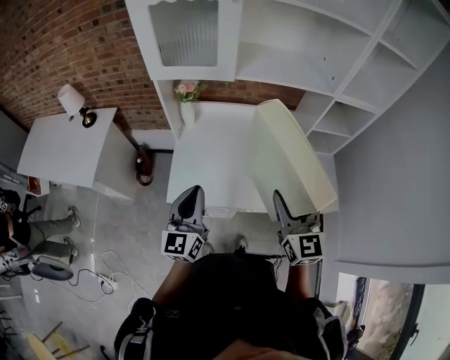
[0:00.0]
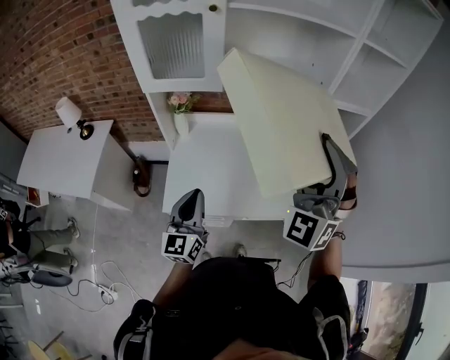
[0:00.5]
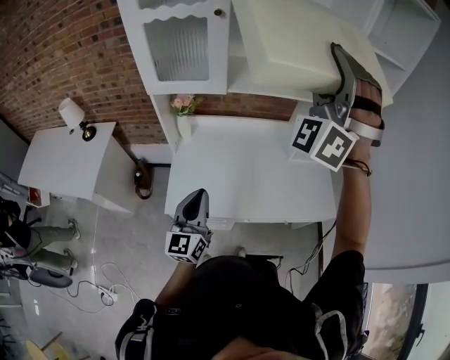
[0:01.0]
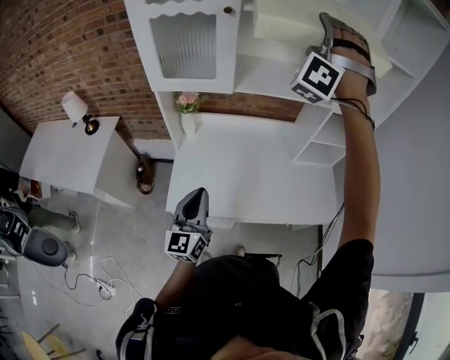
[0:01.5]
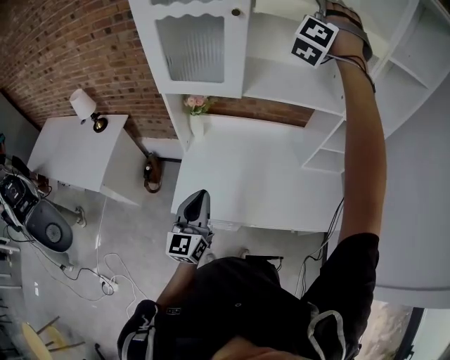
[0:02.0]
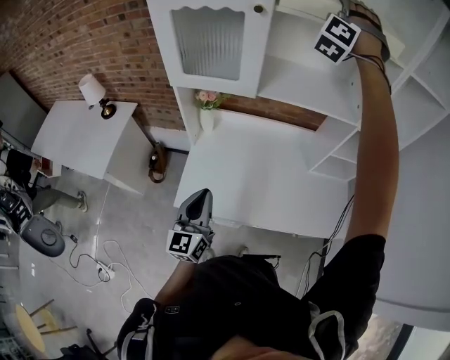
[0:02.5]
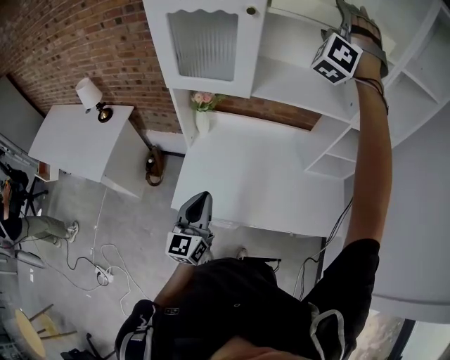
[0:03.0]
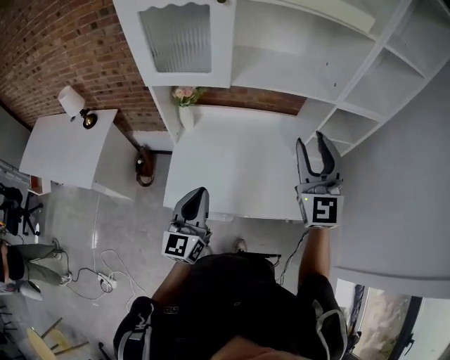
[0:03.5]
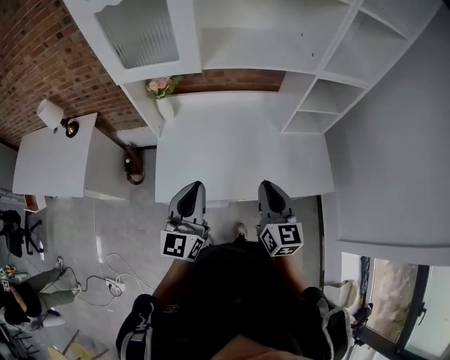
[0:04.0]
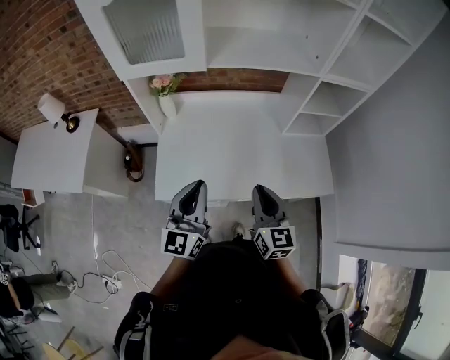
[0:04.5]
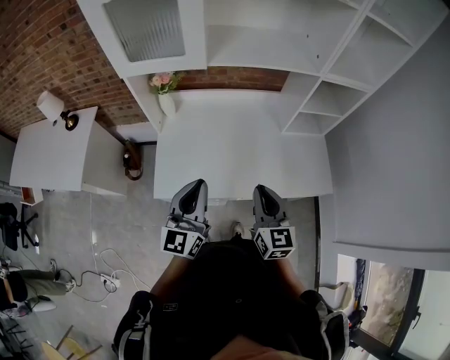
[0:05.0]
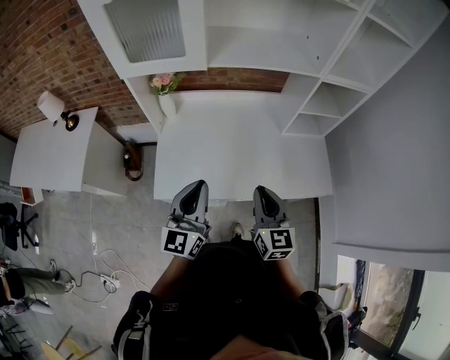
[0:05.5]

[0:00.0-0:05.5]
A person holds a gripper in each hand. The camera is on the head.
0:00.0 to 0:02.0: The right gripper heads forward and upward, covering about 50 cm, and twists approximately 80 degrees counterclockwise, seen from behind.
0:02.0 to 0:03.5: The right gripper goes approximately 35 cm backward and downward, twists roughly 70 degrees clockwise, seen from behind, and closes.
0:03.5 to 0:05.5: The right gripper shifts some 25 cm downward and backward, rotates some 40 degrees, and closes.

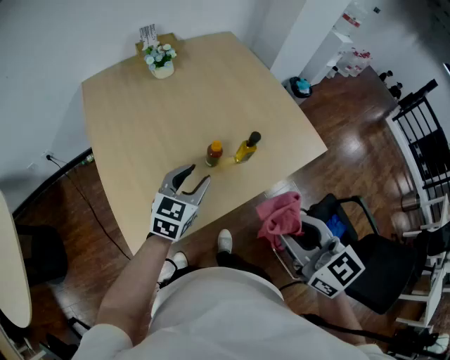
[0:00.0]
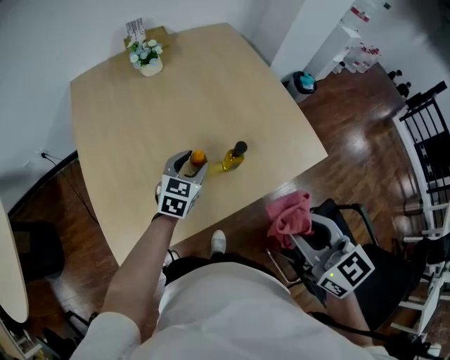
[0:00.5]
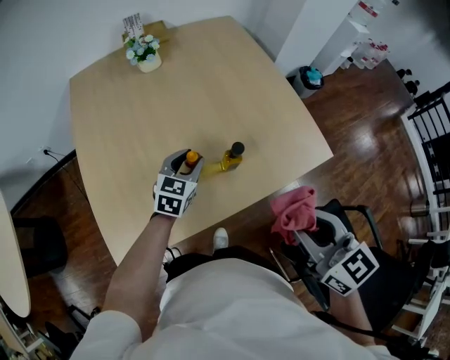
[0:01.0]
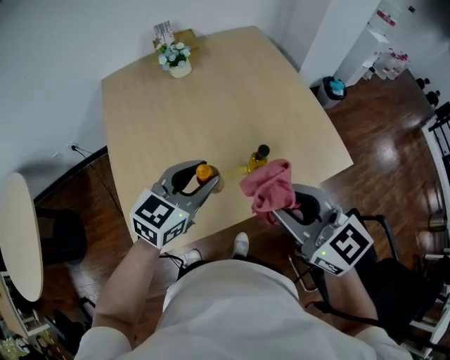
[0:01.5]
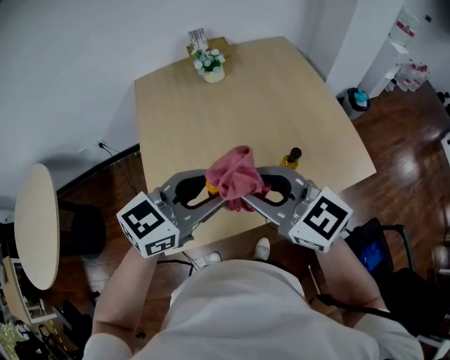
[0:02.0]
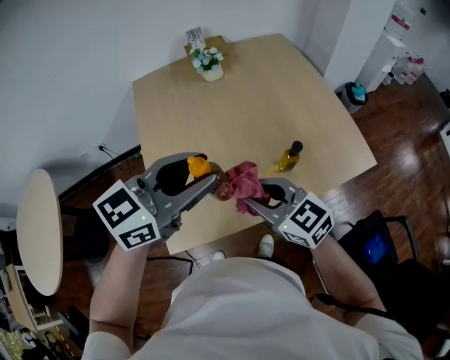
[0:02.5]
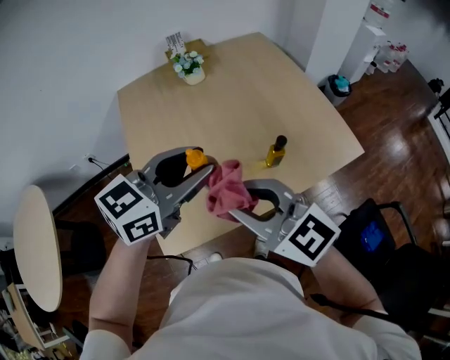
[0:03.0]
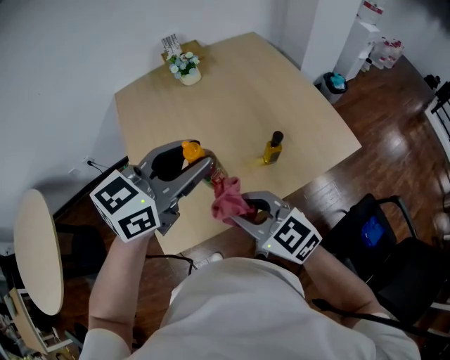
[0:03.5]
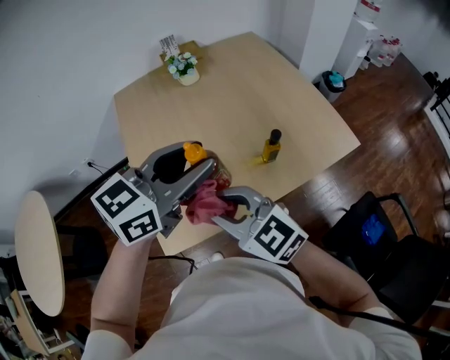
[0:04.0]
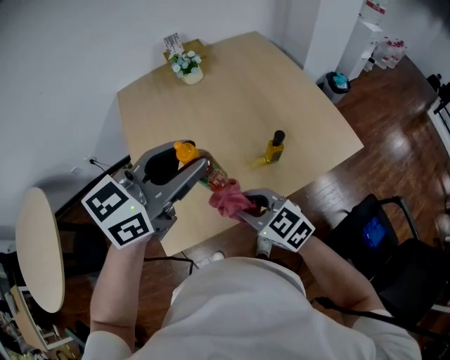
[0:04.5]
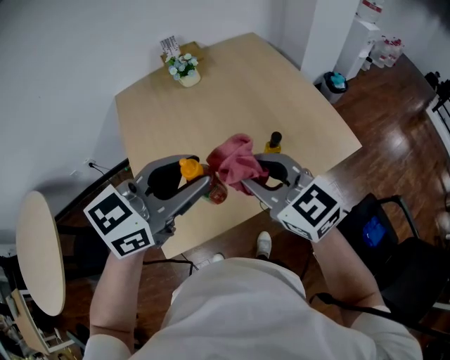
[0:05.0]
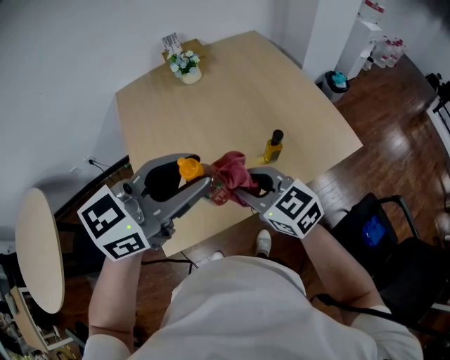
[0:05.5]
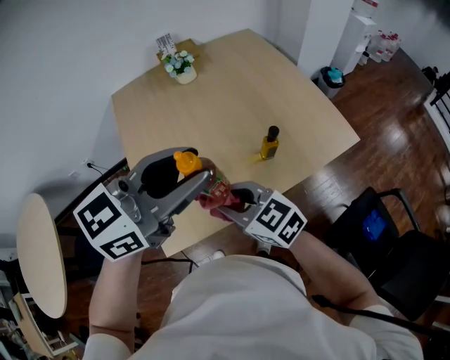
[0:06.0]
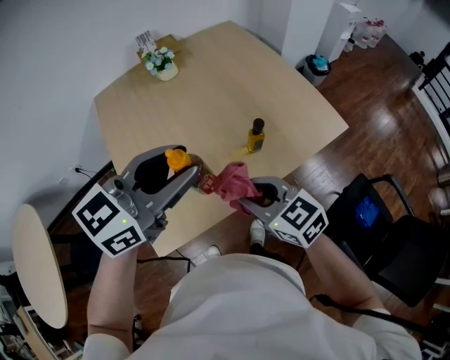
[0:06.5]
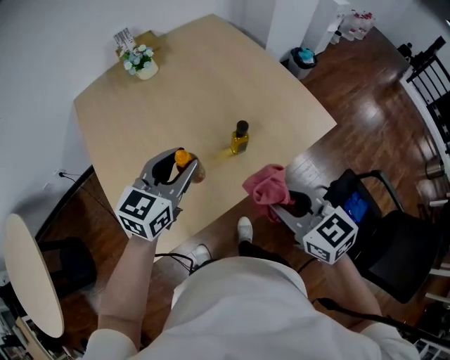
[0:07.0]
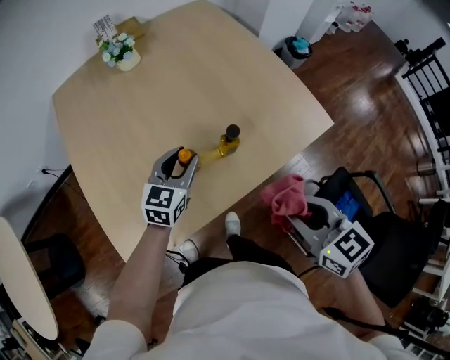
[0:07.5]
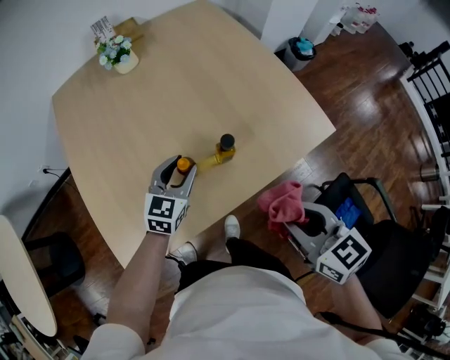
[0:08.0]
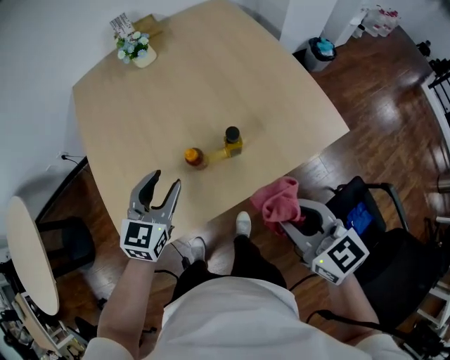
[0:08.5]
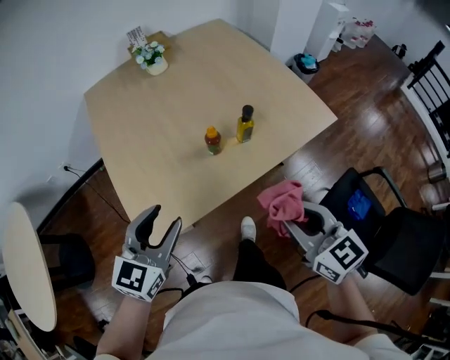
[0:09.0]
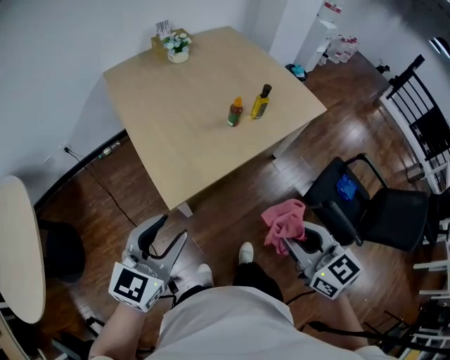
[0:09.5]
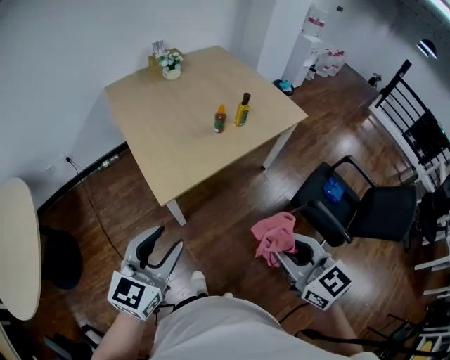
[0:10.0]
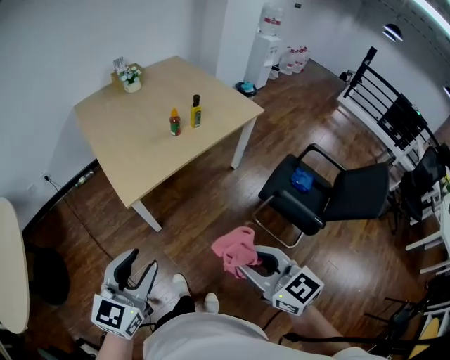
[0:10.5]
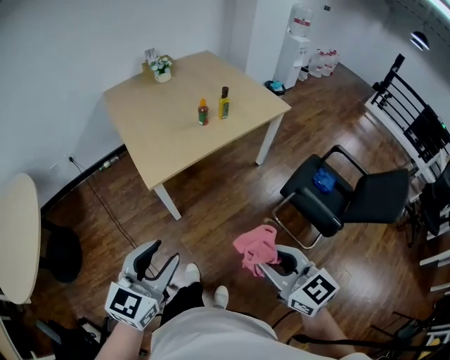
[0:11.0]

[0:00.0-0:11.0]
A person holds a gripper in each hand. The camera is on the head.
0:00.0 to 0:02.0: The right gripper travels forward and to the left by some 15 cm, and swivels approximately 40 degrees; the left gripper is displaced upward by approximately 15 cm.
0:02.0 to 0:03.5: The left gripper shifts by some 5 cm, while the right gripper moves up and down over about 10 cm, changing direction 2 times.
0:03.5 to 0:05.5: The right gripper moves up and down over roughly 15 cm, changing direction 3 times.
0:05.5 to 0:07.5: The left gripper travels downward and forward by about 35 cm, and turns by some 20 degrees; the right gripper goes roughly 20 cm to the right, and changes its angle by some 30 degrees.
0:07.5 to 0:09.0: The left gripper shifts roughly 30 cm backward, to the left and upward. The right gripper shifts roughly 15 cm backward and to the left.
0:09.0 to 0:11.0: The two grippers travel together, backward, roughly 40 cm.

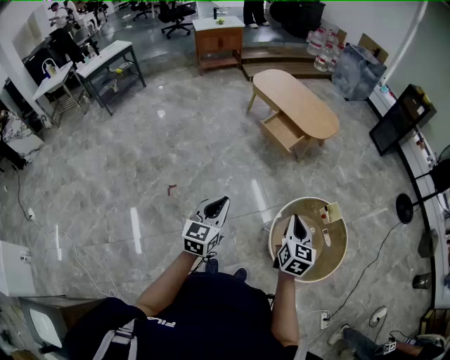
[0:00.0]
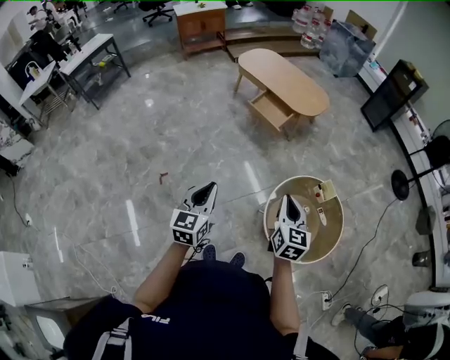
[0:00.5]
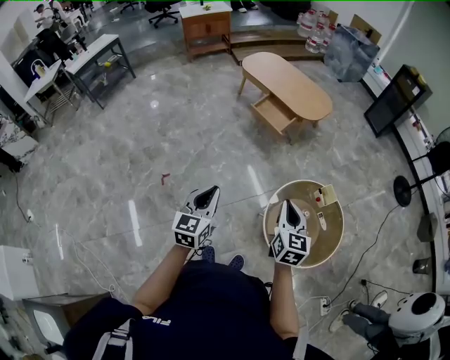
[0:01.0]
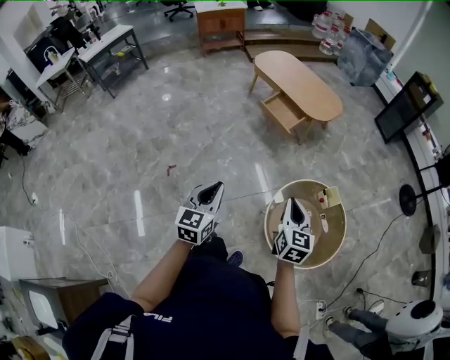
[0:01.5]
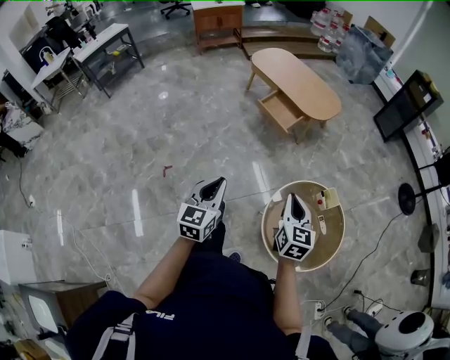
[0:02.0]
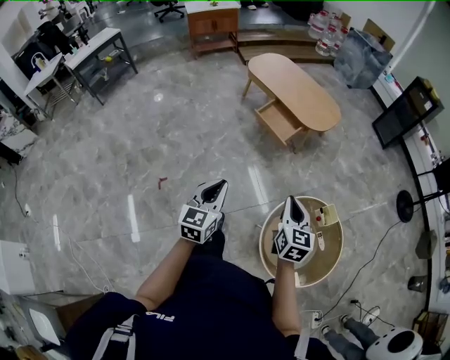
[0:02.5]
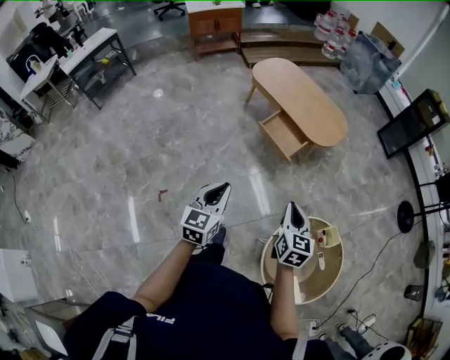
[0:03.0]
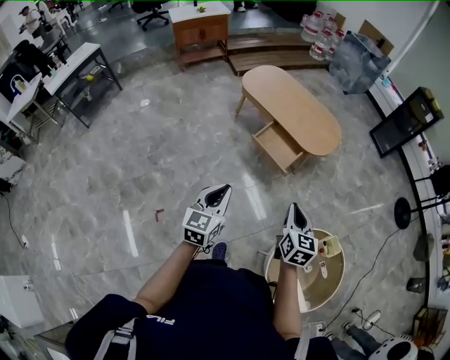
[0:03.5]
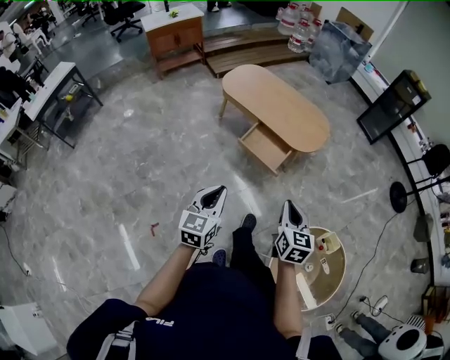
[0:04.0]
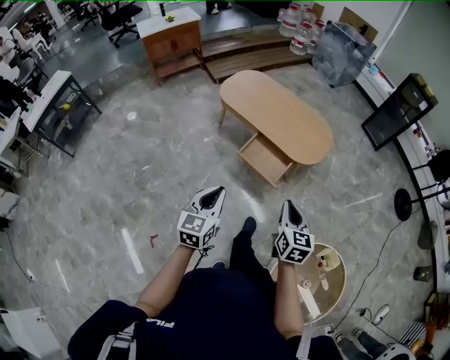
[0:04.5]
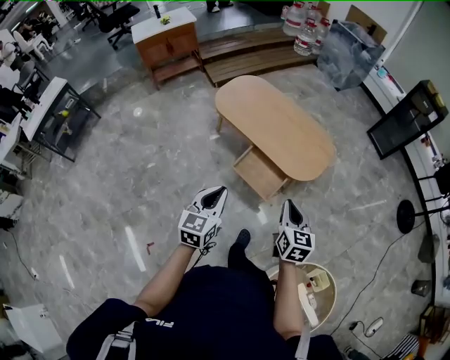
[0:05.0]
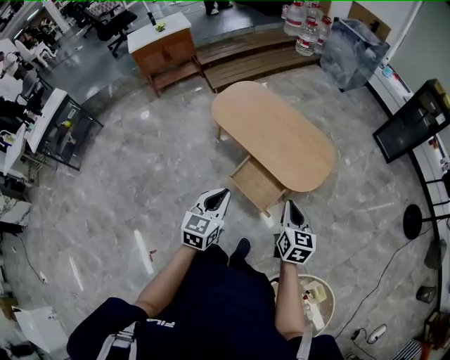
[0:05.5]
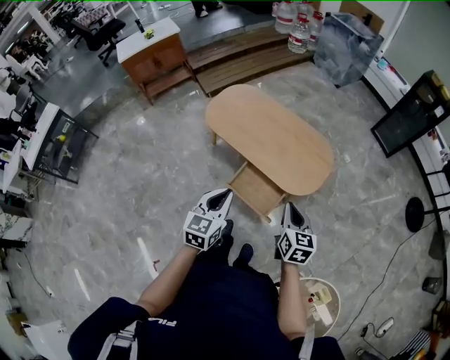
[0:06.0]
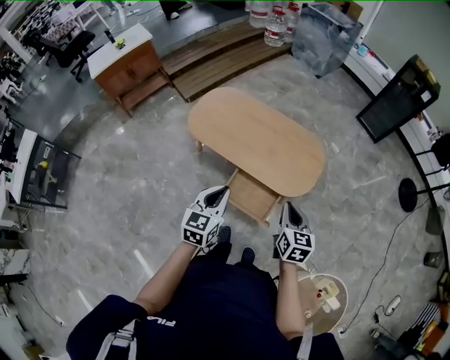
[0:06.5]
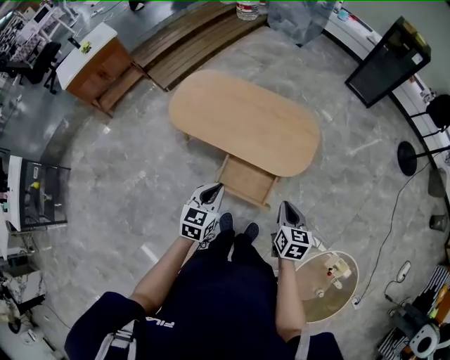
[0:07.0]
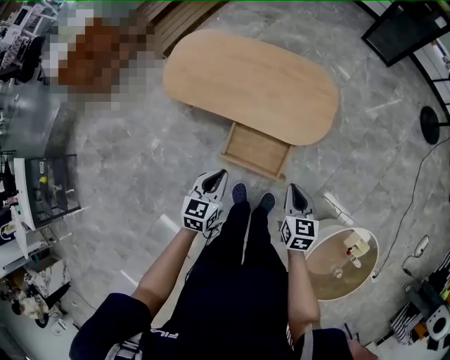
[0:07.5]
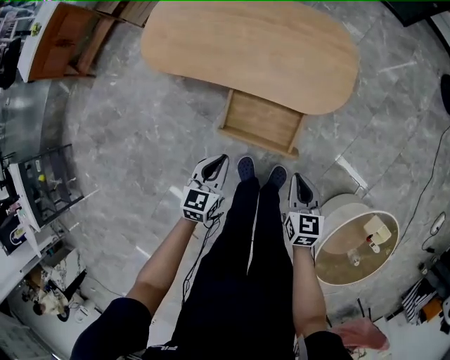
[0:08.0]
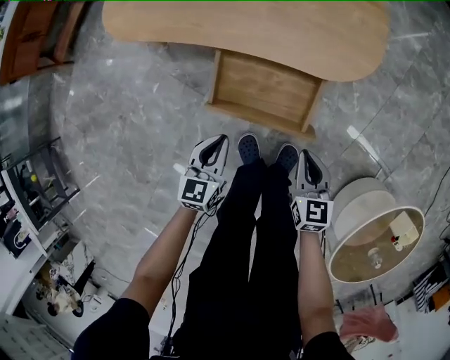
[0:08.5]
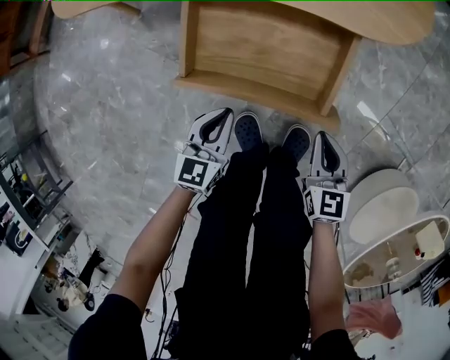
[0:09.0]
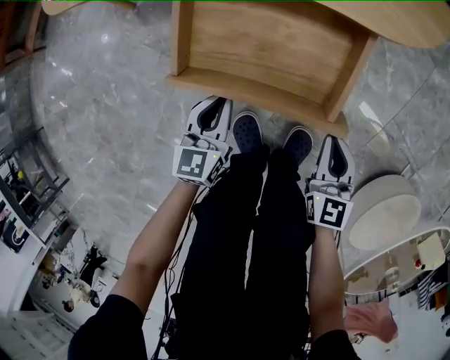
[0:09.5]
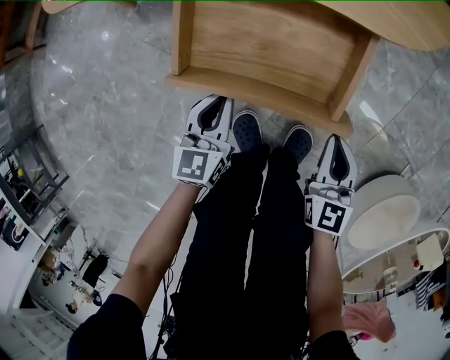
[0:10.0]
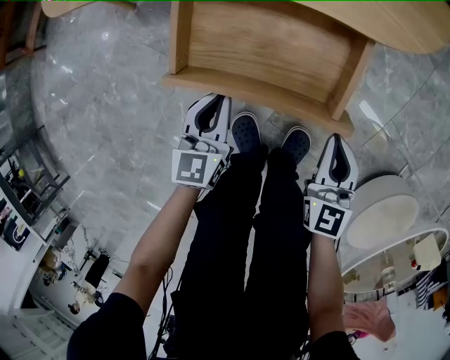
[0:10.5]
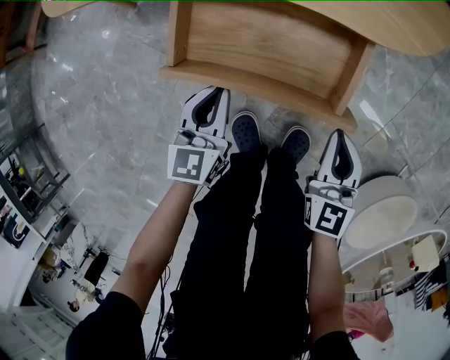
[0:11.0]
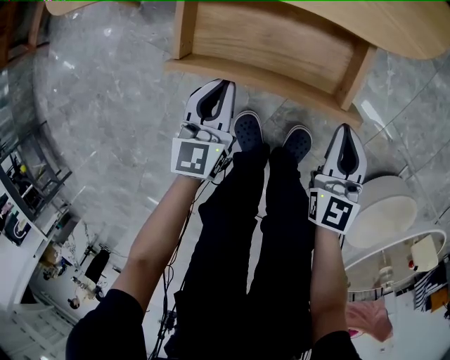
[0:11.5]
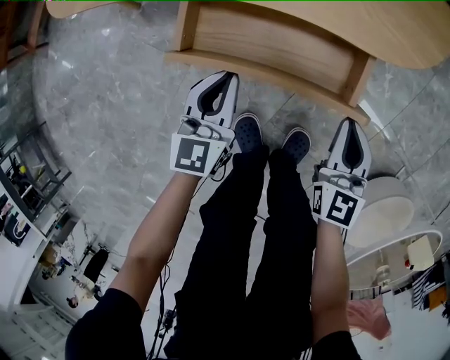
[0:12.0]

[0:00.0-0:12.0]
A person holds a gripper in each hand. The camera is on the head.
0:00.0 to 0:02.0: The left gripper changes place by about 5 cm. Meanwhile the right gripper goes roughly 5 cm forward.
0:02.0 to 0:04.0: The two grippers go about 40 cm forward.
0:04.0 to 0:06.0: Both grippers are carried forward, about 40 cm.
0:06.0 to 0:08.0: Both grippers travel together downward, some 35 cm. The left gripper turns by some 30 degrees.
0:08.0 to 0:10.0: The grippers both shift downward by about 35 cm.
0:10.0 to 0:12.0: The left gripper goes roughly 10 cm forward and upward, while the right gripper shifts roughly 10 cm forward.
